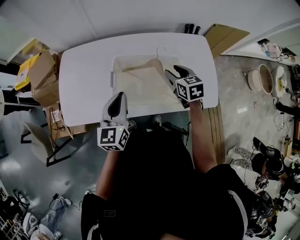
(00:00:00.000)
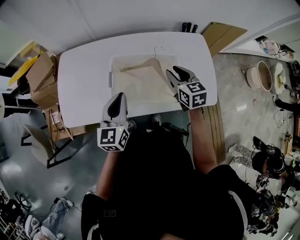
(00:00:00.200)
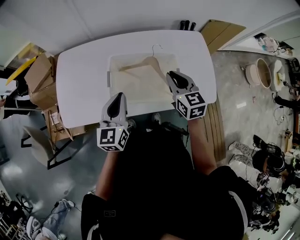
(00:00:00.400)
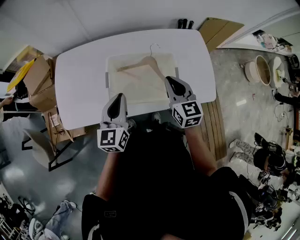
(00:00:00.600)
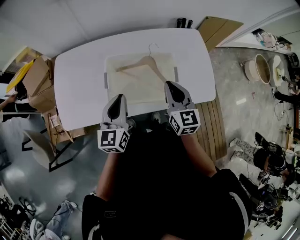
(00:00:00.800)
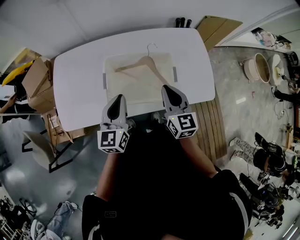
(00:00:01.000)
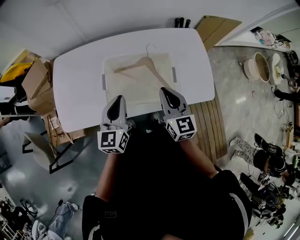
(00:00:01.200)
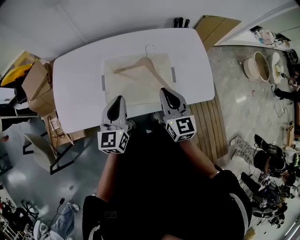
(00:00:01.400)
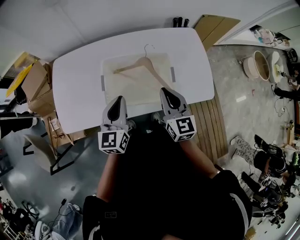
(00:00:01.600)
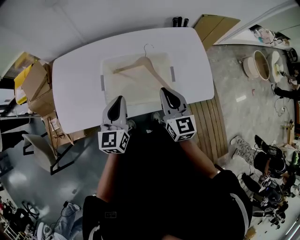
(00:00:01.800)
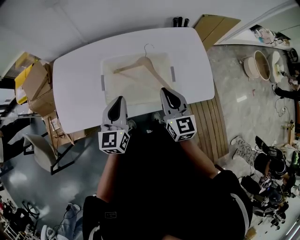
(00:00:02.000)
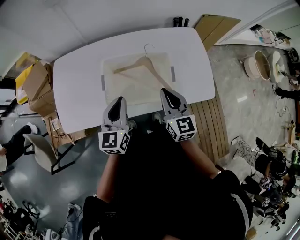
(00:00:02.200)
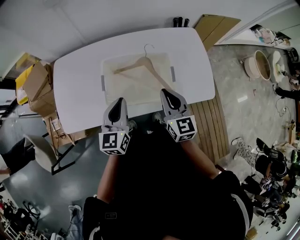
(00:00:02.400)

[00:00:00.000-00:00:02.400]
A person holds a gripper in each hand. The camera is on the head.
00:00:00.000 to 00:00:01.200: The right gripper shifts some 15 cm backward and upward, changes its angle by some 30 degrees, and closes.
00:00:01.200 to 00:00:02.400: The grippers move only a little.

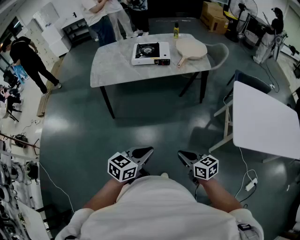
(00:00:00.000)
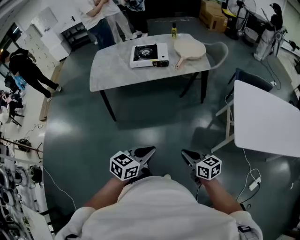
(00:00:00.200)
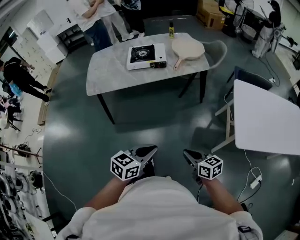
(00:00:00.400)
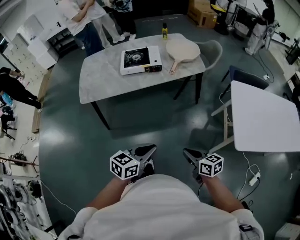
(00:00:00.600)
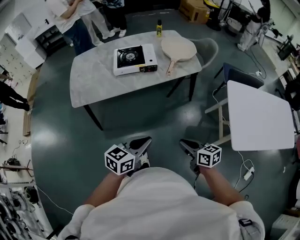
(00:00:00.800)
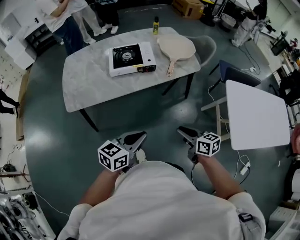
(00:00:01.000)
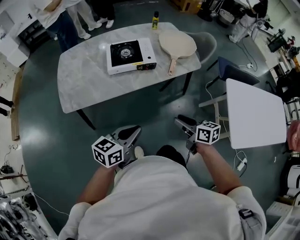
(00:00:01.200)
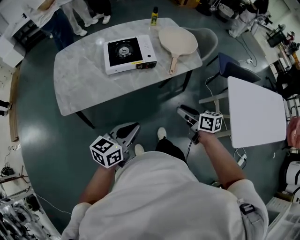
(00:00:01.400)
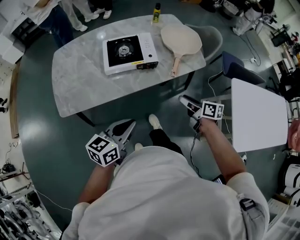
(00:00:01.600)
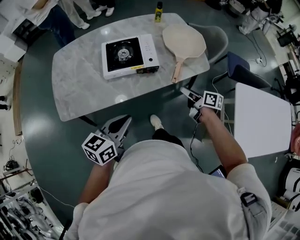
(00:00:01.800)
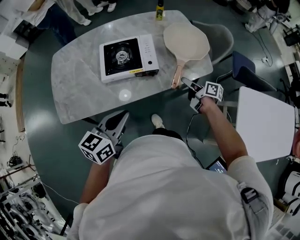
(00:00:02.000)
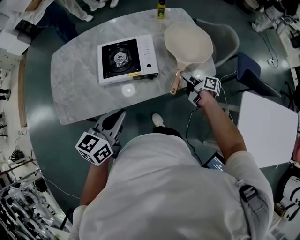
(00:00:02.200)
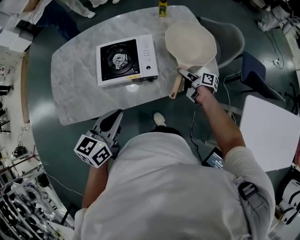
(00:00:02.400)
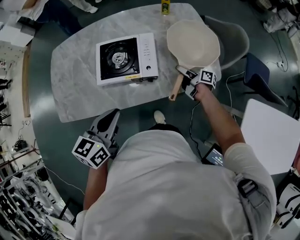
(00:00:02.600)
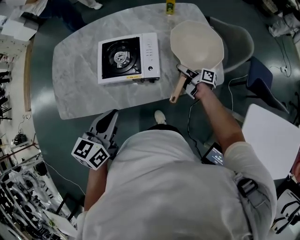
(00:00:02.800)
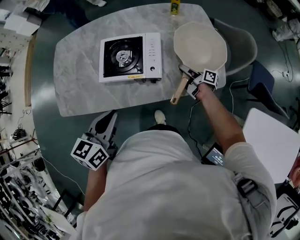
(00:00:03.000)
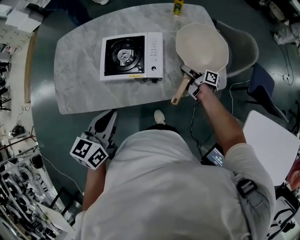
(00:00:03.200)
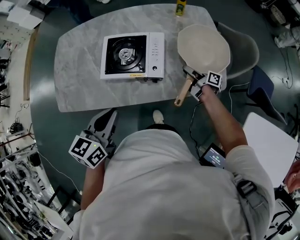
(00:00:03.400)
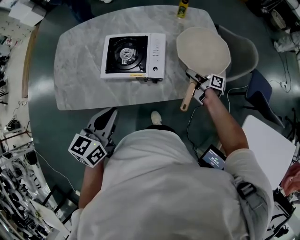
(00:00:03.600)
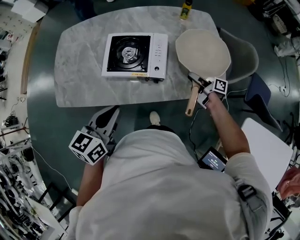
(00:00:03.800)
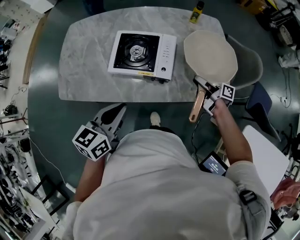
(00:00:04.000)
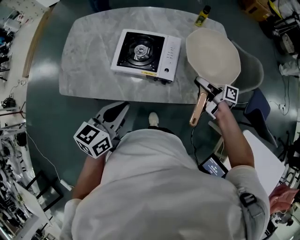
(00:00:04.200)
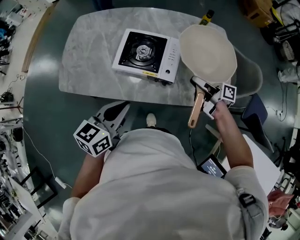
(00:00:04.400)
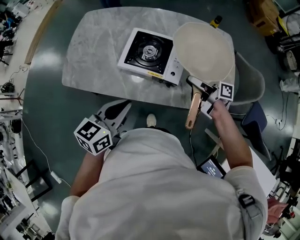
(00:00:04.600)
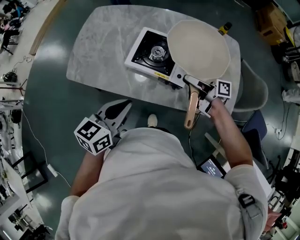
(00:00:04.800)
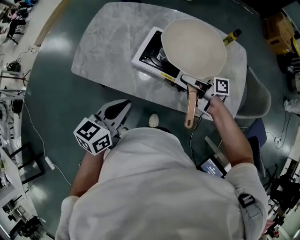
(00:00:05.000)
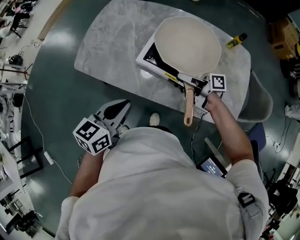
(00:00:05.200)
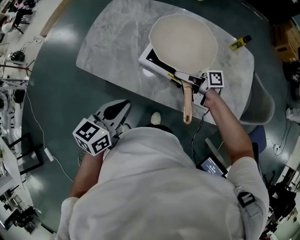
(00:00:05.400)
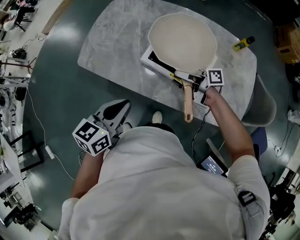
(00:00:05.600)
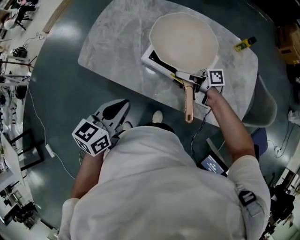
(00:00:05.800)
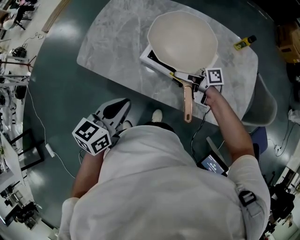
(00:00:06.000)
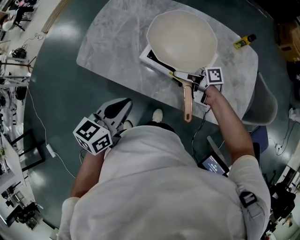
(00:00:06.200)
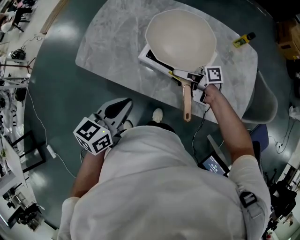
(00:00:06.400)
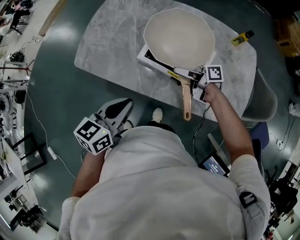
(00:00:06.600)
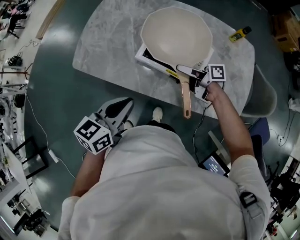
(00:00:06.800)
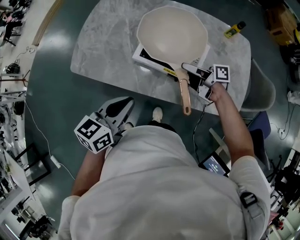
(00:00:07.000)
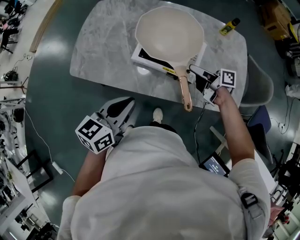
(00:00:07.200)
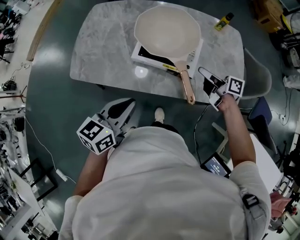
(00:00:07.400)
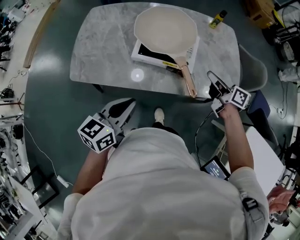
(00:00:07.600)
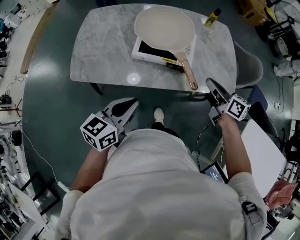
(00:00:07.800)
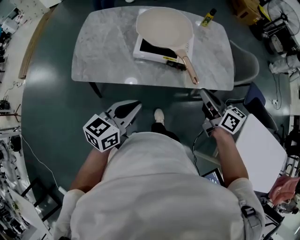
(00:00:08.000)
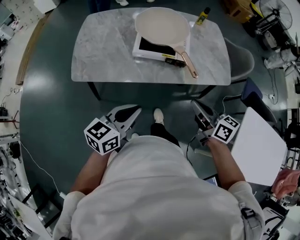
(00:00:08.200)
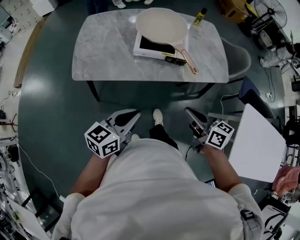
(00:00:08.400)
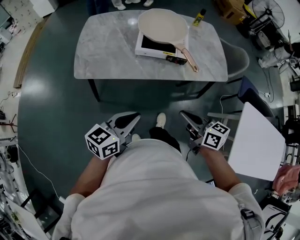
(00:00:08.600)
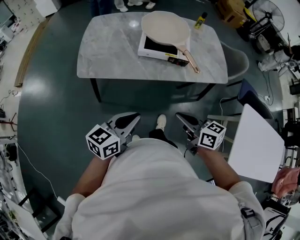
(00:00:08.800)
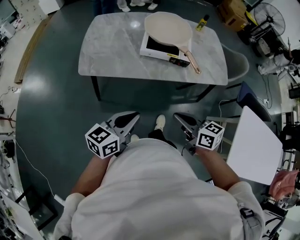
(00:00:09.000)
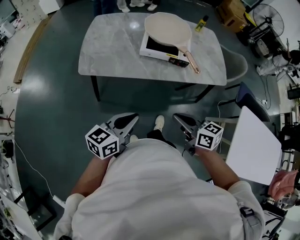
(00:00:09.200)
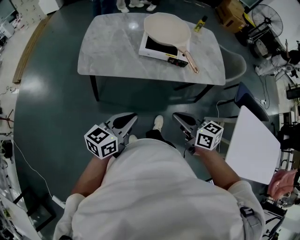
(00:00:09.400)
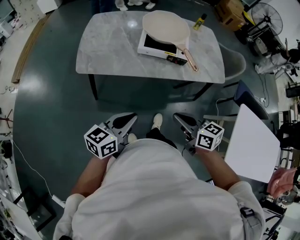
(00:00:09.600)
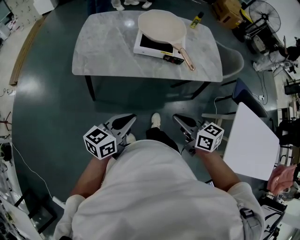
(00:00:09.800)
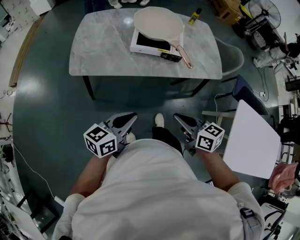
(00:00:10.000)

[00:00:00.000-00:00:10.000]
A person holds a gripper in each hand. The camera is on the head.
00:00:00.000 to 00:00:01.400: Both grippers move forward, approximately 35 cm. The right gripper turns by approximately 20 degrees, and opens up.
00:00:01.400 to 00:00:02.800: The right gripper shifts some 40 cm forward, and changes its angle by some 40 degrees; the left gripper heads forward, covering about 25 cm, and rotates approximately 30 degrees.
00:00:02.800 to 00:00:04.200: The right gripper shifts some 10 cm upward.
00:00:04.200 to 00:00:05.800: The right gripper shifts by some 25 cm, and turns by approximately 40 degrees; the left gripper moves approximately 10 cm.
00:00:05.800 to 00:00:07.200: The right gripper goes some 10 cm to the right, swivels roughly 20 degrees, and opens up.
00:00:07.200 to 00:00:08.600: The left gripper travels backward by some 20 cm, and changes its angle by approximately 20 degrees; the right gripper goes some 40 cm backward, rotates about 40 degrees, and closes up.
00:00:08.600 to 00:00:10.000: The grippers move only a little.

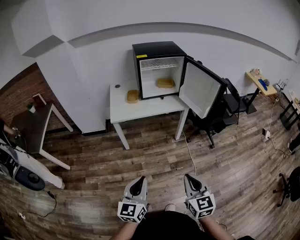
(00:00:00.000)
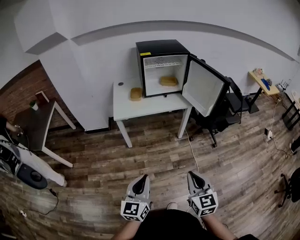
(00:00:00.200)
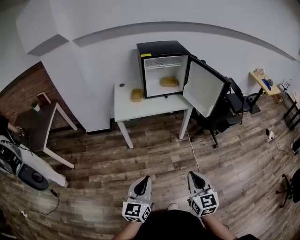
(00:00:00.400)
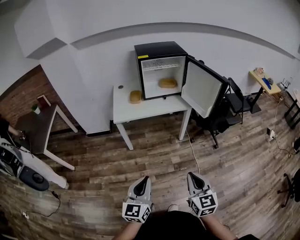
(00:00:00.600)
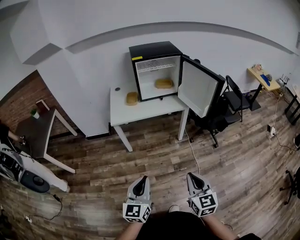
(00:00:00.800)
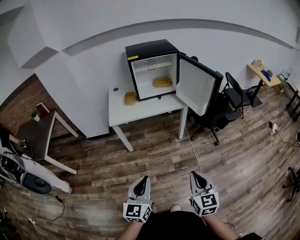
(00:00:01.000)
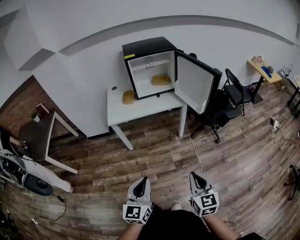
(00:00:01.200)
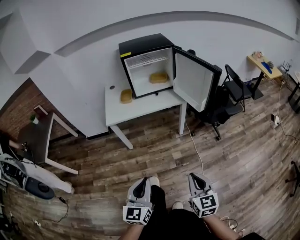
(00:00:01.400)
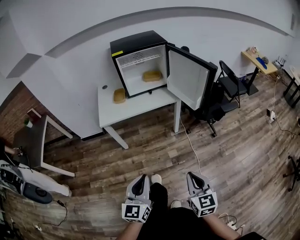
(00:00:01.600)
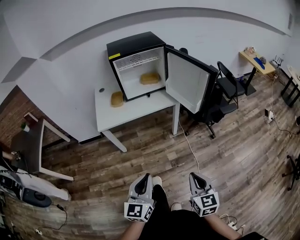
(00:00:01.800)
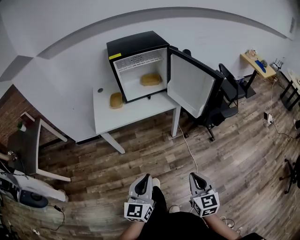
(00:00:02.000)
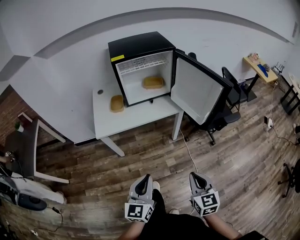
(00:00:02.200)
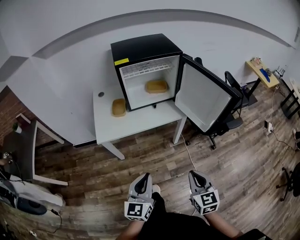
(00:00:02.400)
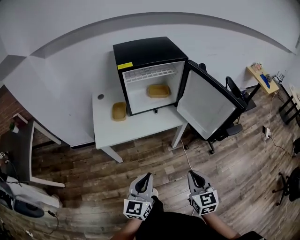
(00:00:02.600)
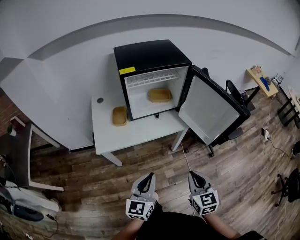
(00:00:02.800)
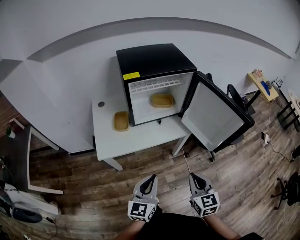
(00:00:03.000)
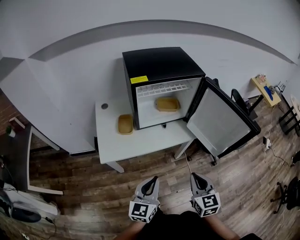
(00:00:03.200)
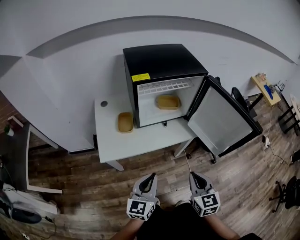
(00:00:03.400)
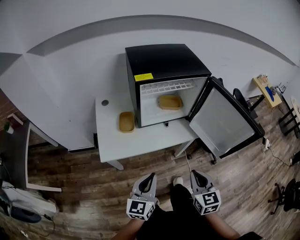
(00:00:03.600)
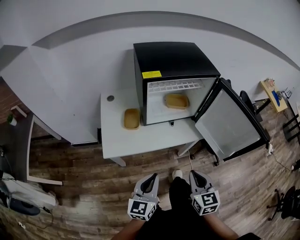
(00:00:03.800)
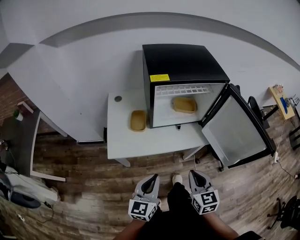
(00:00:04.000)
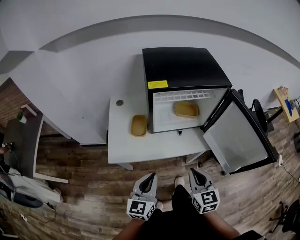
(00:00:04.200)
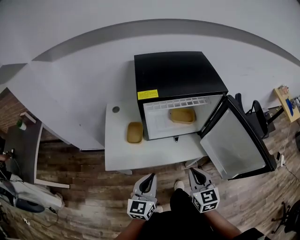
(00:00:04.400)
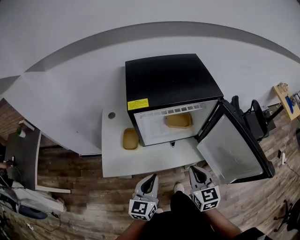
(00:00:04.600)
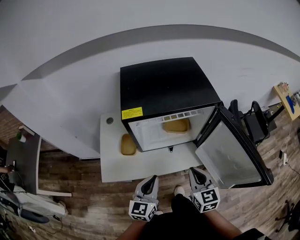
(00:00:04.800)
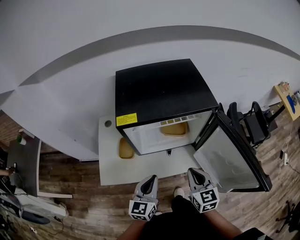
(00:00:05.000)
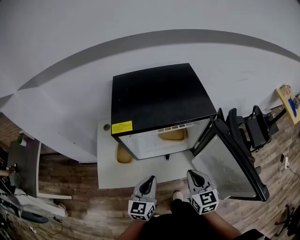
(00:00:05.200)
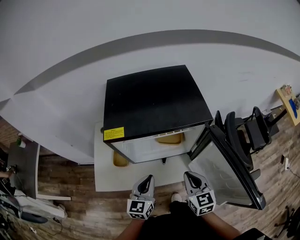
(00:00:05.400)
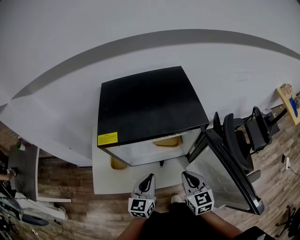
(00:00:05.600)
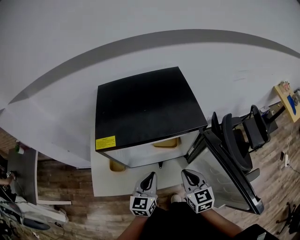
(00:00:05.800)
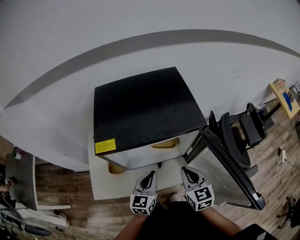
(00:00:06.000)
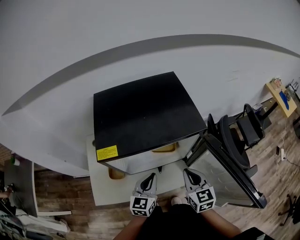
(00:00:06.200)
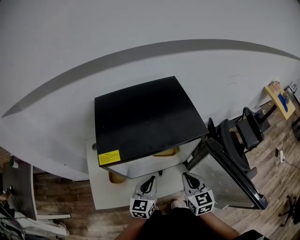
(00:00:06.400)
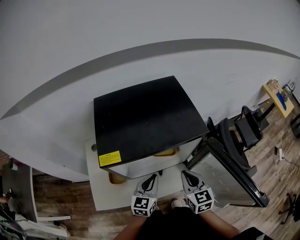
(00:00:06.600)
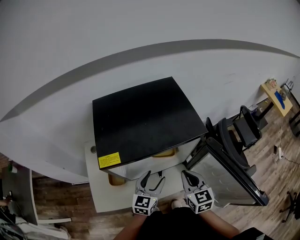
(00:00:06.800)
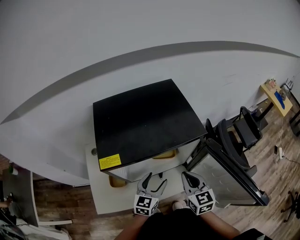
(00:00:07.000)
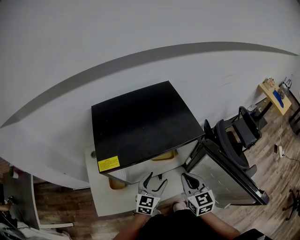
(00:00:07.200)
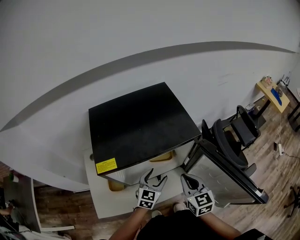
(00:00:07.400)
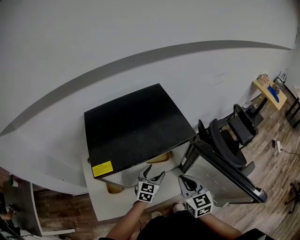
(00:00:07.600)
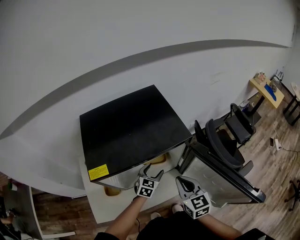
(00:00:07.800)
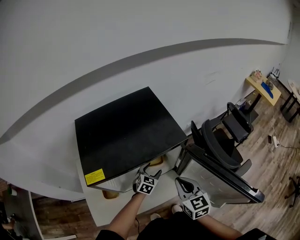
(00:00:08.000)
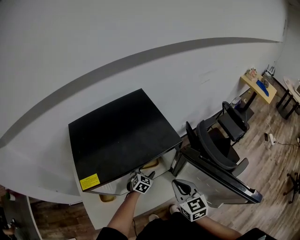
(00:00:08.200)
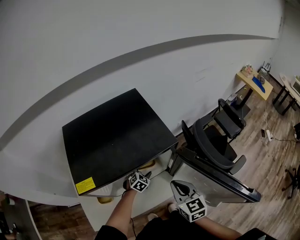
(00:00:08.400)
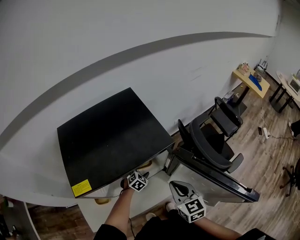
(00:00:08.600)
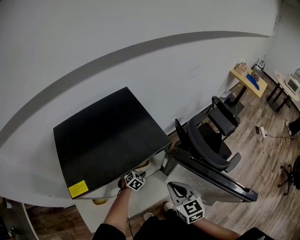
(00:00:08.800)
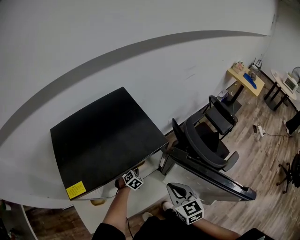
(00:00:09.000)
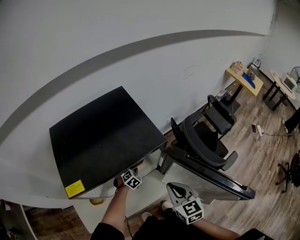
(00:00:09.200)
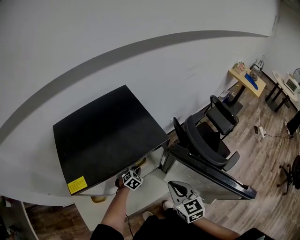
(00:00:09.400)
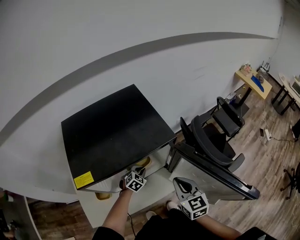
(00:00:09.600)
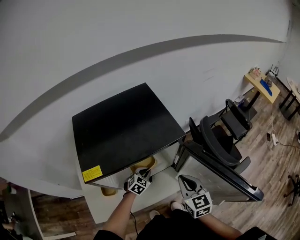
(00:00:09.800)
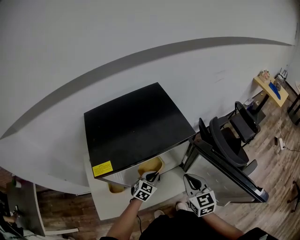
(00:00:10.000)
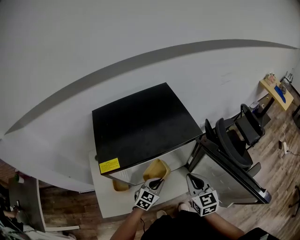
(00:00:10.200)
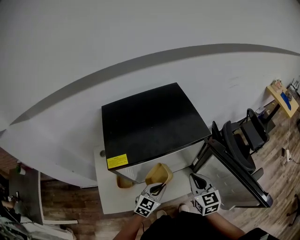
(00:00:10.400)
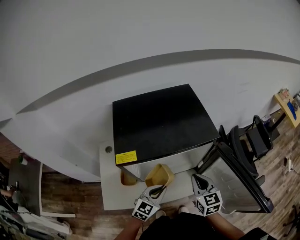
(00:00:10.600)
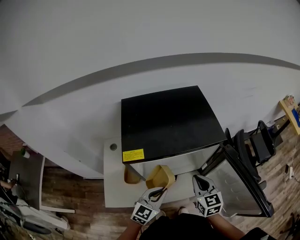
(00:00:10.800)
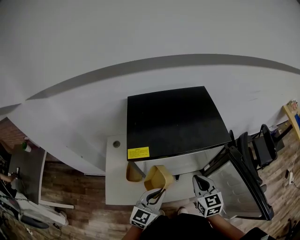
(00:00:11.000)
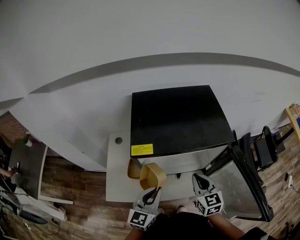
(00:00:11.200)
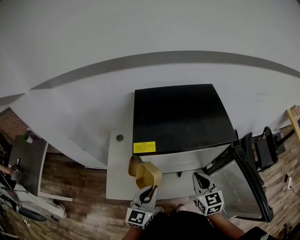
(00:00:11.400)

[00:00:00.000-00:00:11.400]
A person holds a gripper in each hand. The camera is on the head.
00:00:00.000 to 00:00:01.400: The right gripper travels to the right and downward by about 10 cm. Meanwhile the left gripper moves to the right, approximately 10 cm.
00:00:01.400 to 00:00:02.800: The grippers both shift forward by approximately 30 cm.
00:00:02.800 to 00:00:04.200: The grippers both shift forward and to the left by approximately 20 cm.
00:00:04.200 to 00:00:05.600: Both grippers travel together forward and to the right, roughly 25 cm.
00:00:05.600 to 00:00:07.200: The right gripper changes place by about 5 cm. Meanwhile the left gripper heads forward, covering some 5 cm, turns by about 20 degrees, and opens up.
00:00:07.200 to 00:00:08.600: The left gripper goes some 25 cm downward and forward, and points its fingers about 30 degrees further downward.
00:00:08.600 to 00:00:10.000: The left gripper is displaced backward and upward by some 15 cm, rotates roughly 20 degrees, and closes.
00:00:10.000 to 00:00:11.400: The left gripper heads upward, backward and to the left, covering about 25 cm, and turns by roughly 40 degrees. The right gripper is displaced to the left by some 10 cm.
